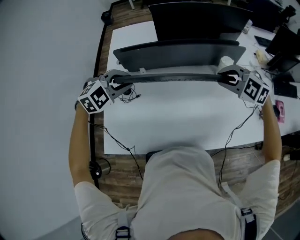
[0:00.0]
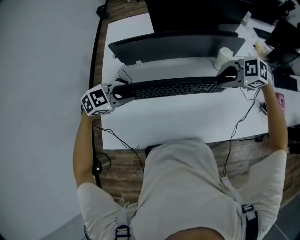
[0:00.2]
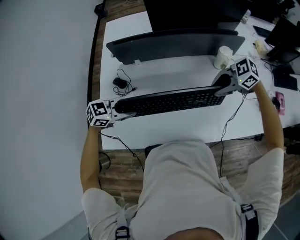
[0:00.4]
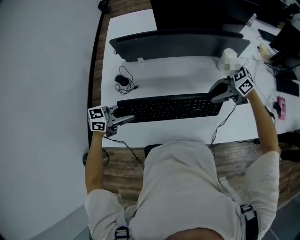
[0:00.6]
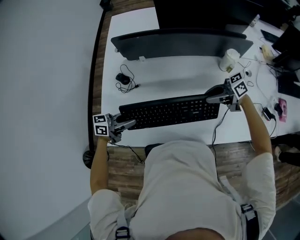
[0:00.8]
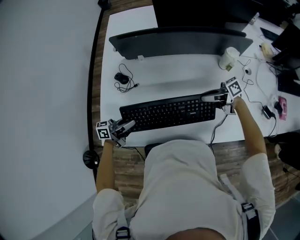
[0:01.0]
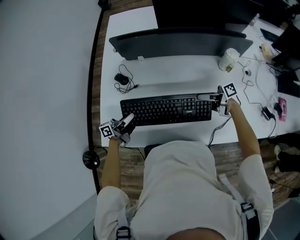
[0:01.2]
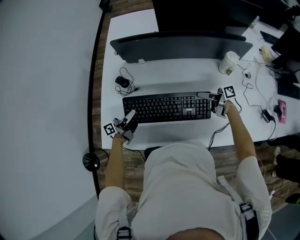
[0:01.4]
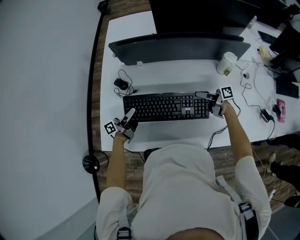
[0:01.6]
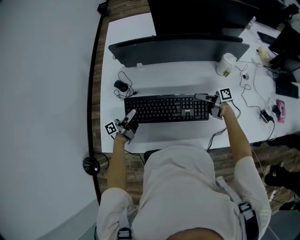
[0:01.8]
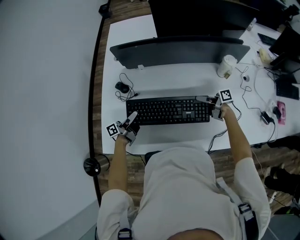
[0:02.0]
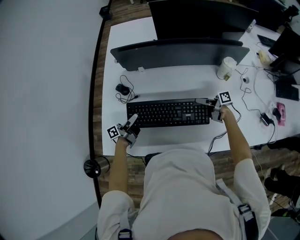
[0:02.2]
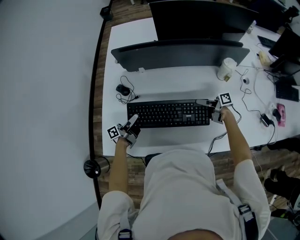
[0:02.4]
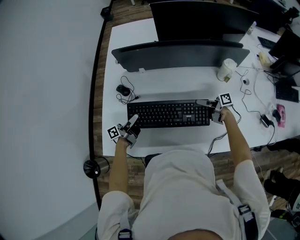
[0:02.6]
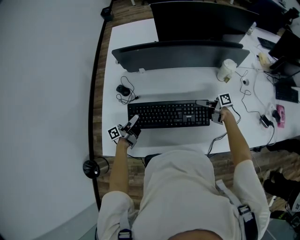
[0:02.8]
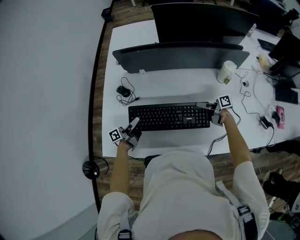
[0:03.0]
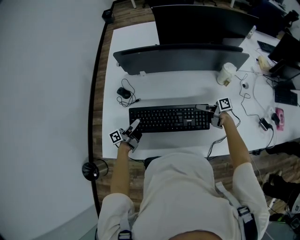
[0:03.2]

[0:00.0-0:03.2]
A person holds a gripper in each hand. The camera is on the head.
0.0 to 1.6 s: The two grippers go about 25 cm downward. The right gripper rotates around the line of its fingers by roughly 100 degrees, clockwise from behind. The left gripper rolls counterclockwise, seen from behind, by some 110 degrees.
1.6 to 3.2 s: The grippers make only small movements.

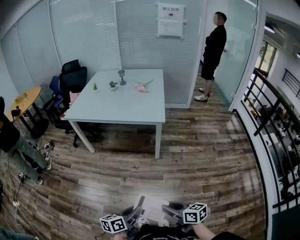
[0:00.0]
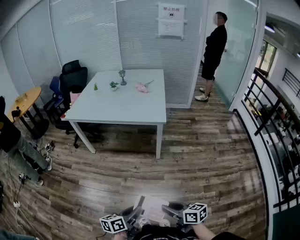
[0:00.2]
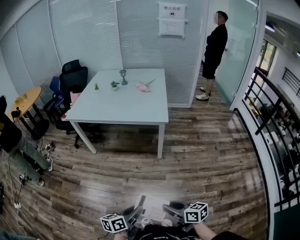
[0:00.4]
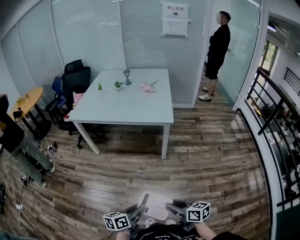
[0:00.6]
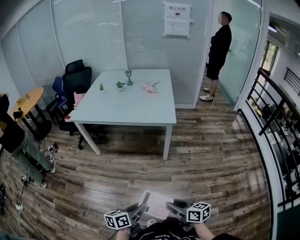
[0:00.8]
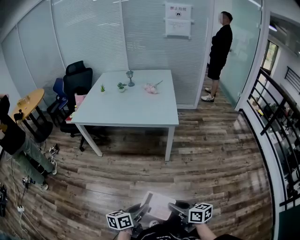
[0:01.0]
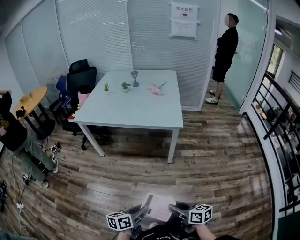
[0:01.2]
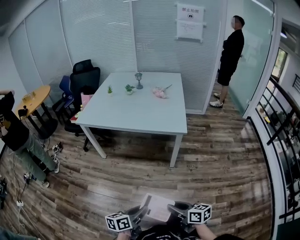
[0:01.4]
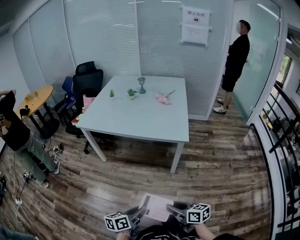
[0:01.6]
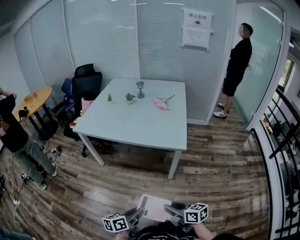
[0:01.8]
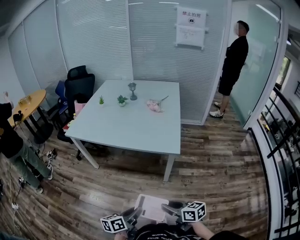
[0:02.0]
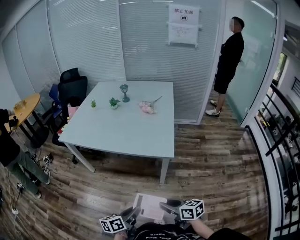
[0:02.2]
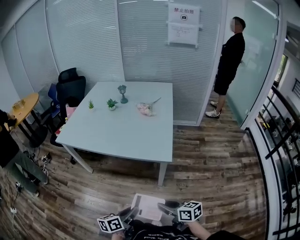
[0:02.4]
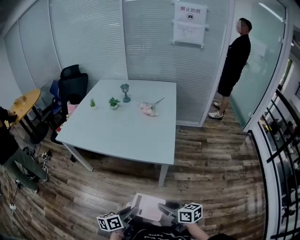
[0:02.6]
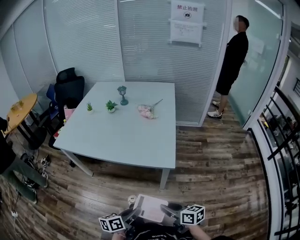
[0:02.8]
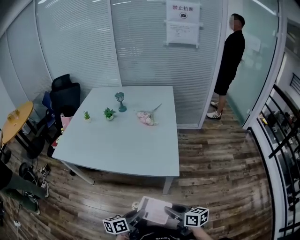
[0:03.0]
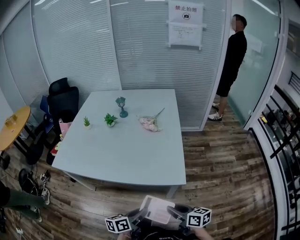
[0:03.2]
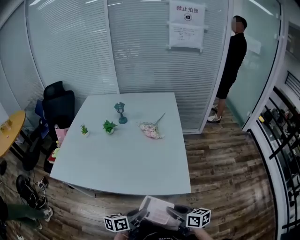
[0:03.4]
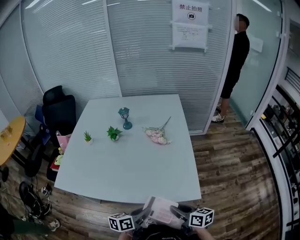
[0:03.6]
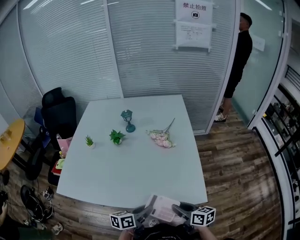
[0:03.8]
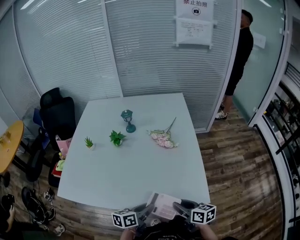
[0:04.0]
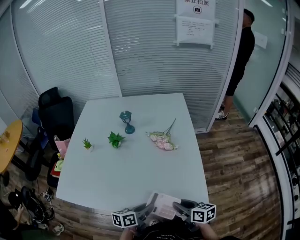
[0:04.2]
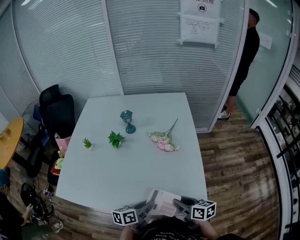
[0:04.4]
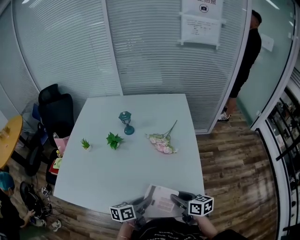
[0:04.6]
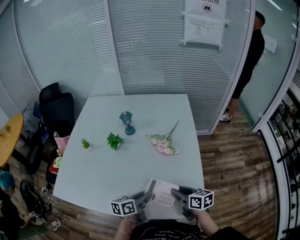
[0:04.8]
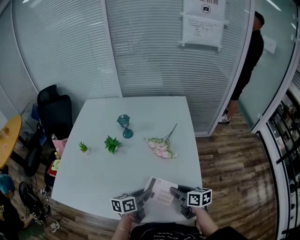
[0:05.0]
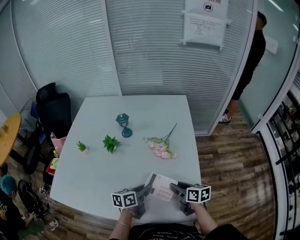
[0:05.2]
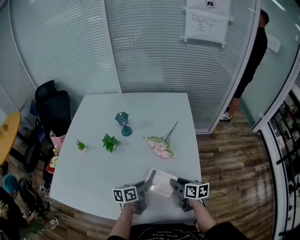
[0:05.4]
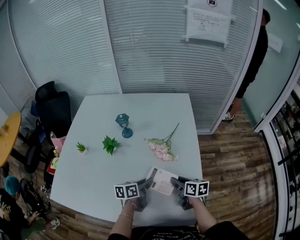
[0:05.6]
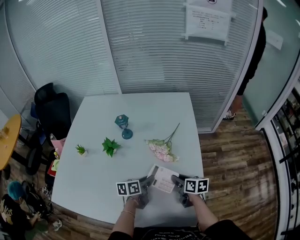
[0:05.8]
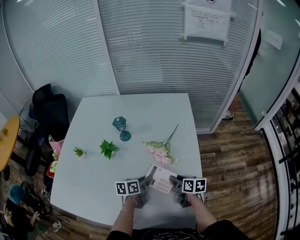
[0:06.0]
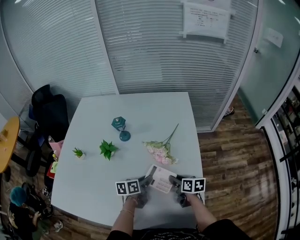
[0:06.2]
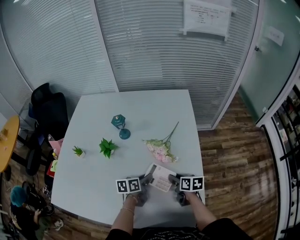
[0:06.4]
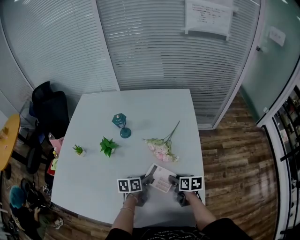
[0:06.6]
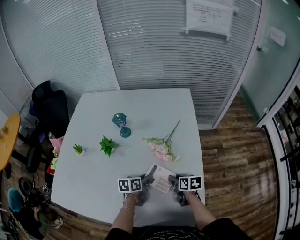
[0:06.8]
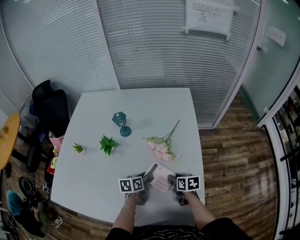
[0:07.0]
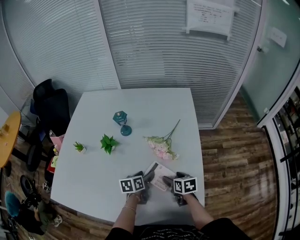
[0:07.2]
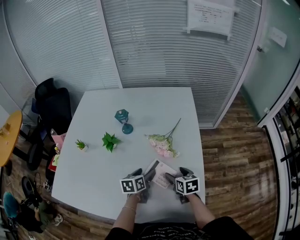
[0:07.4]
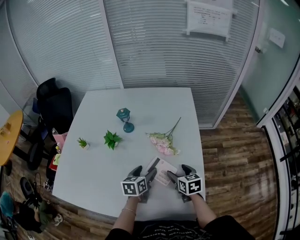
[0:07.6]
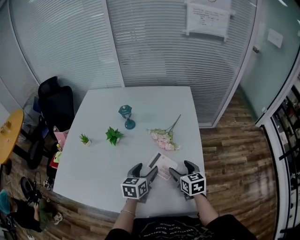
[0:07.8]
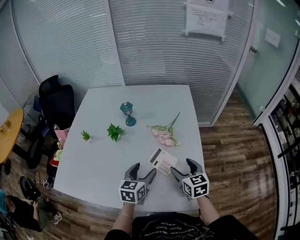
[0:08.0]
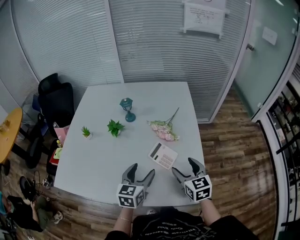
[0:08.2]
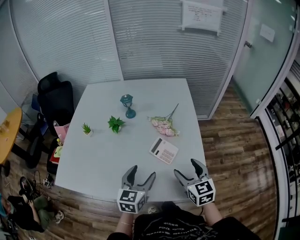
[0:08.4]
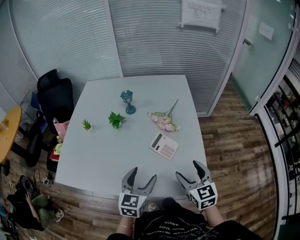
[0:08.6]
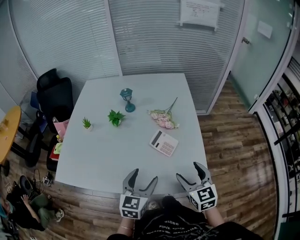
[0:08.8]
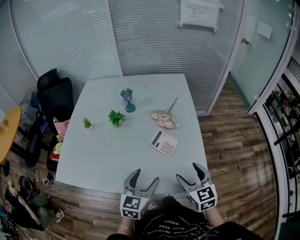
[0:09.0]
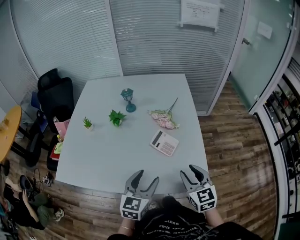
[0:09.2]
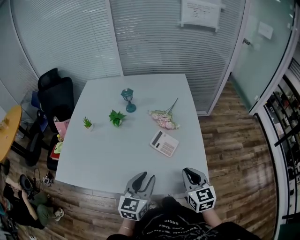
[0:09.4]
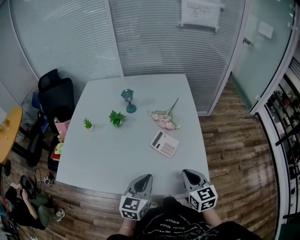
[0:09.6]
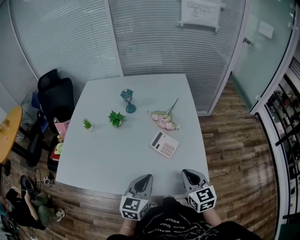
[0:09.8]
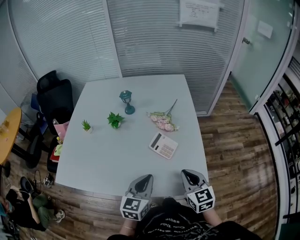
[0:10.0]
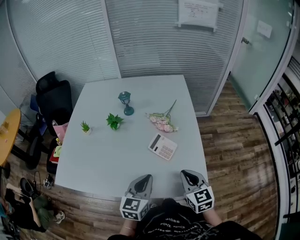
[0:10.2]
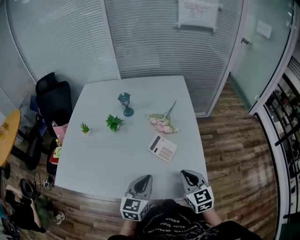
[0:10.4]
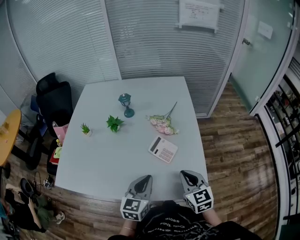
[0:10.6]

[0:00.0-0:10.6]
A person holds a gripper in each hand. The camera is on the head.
0.0 to 1.6 s: The grippers both shift forward by about 20 cm.
1.6 to 3.0 s: Both grippers move forward and to the right, roughly 30 cm.
3.0 to 4.6 s: Both grippers move forward, approximately 35 cm.
4.6 to 6.0 s: The two grippers go some 20 cm forward.
6.0 to 7.6 s: The left gripper swivels approximately 20 degrees, and opens; the right gripper swivels roughly 30 degrees, and opens its fingers.
7.6 to 9.0 s: Both grippers move backward and upward, some 25 cm. The left gripper turns by some 30 degrees. The right gripper rotates approximately 20 degrees.
9.0 to 10.6 s: The right gripper closes; the left gripper closes up.

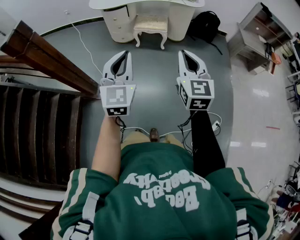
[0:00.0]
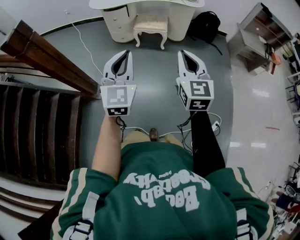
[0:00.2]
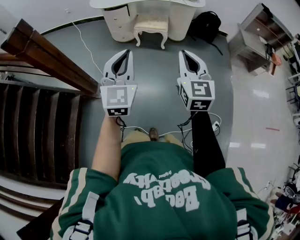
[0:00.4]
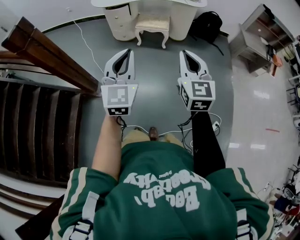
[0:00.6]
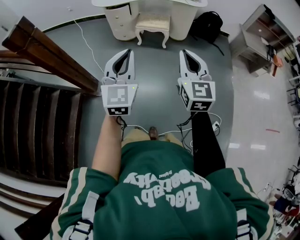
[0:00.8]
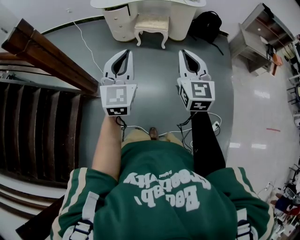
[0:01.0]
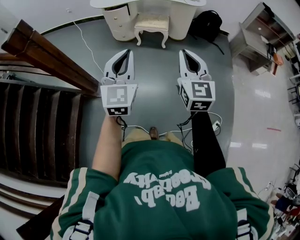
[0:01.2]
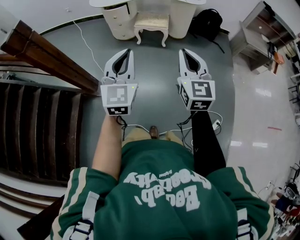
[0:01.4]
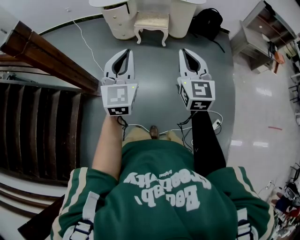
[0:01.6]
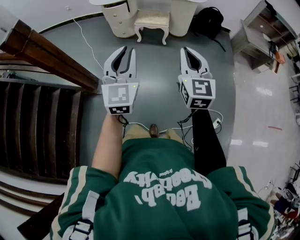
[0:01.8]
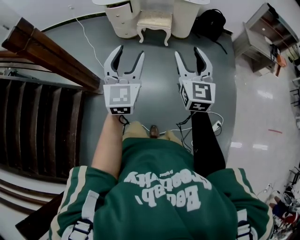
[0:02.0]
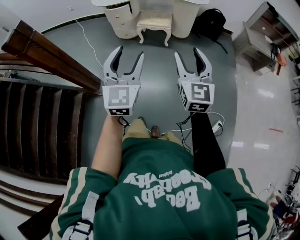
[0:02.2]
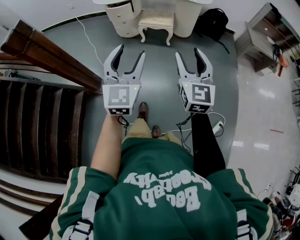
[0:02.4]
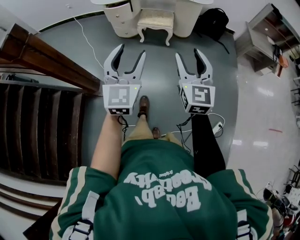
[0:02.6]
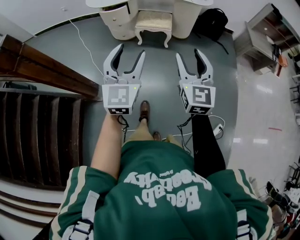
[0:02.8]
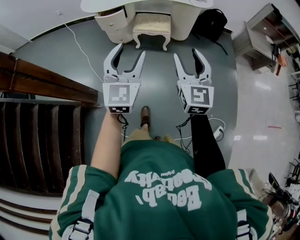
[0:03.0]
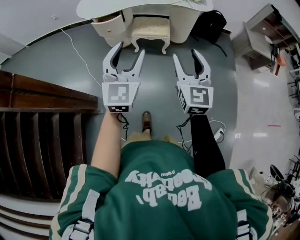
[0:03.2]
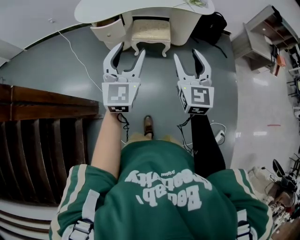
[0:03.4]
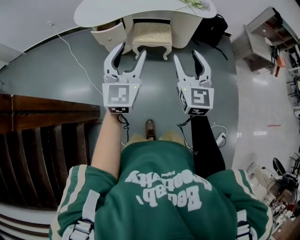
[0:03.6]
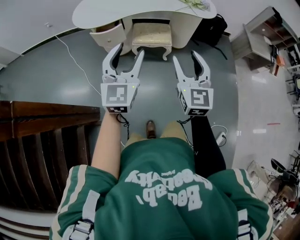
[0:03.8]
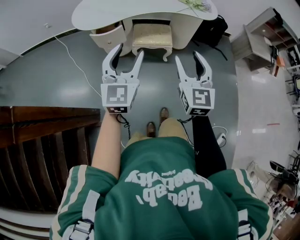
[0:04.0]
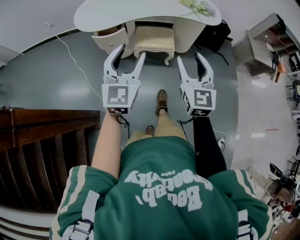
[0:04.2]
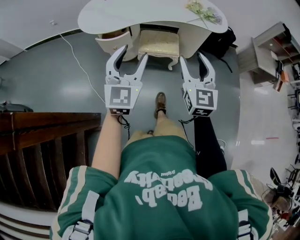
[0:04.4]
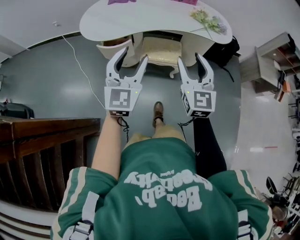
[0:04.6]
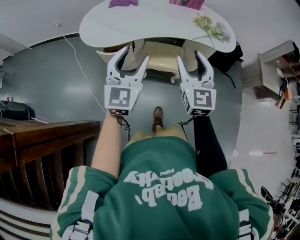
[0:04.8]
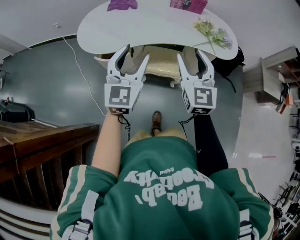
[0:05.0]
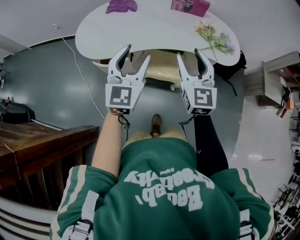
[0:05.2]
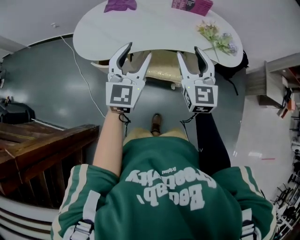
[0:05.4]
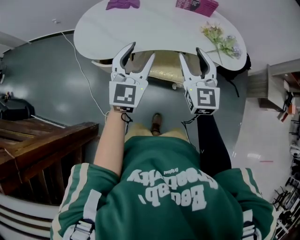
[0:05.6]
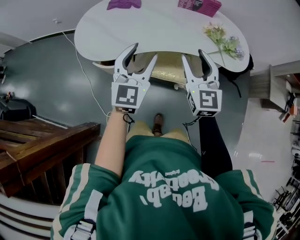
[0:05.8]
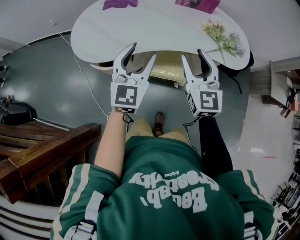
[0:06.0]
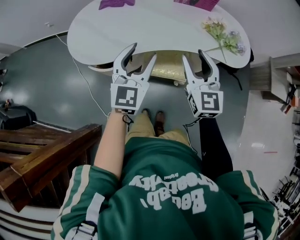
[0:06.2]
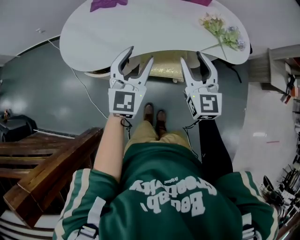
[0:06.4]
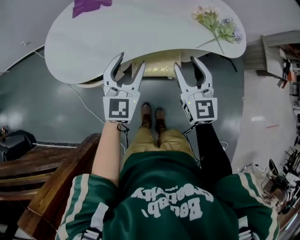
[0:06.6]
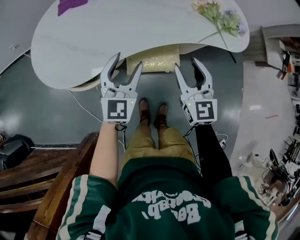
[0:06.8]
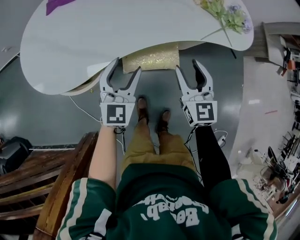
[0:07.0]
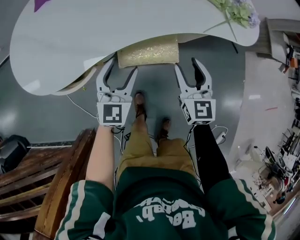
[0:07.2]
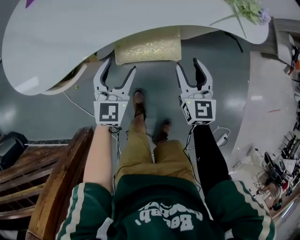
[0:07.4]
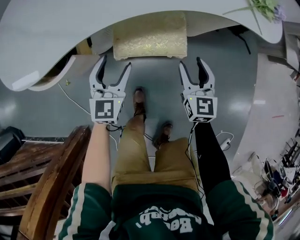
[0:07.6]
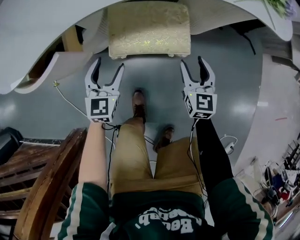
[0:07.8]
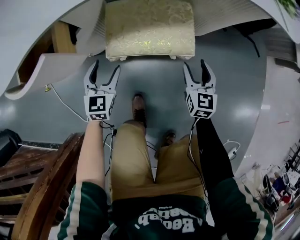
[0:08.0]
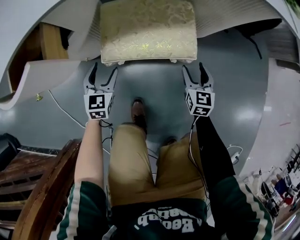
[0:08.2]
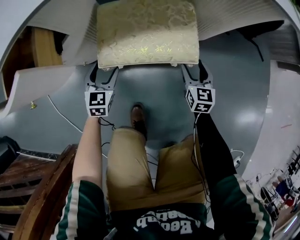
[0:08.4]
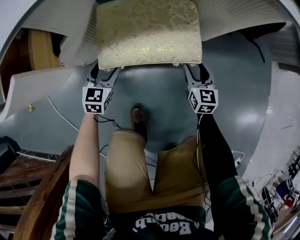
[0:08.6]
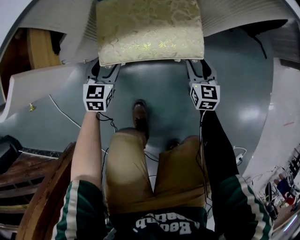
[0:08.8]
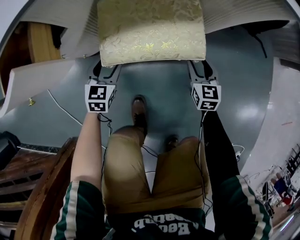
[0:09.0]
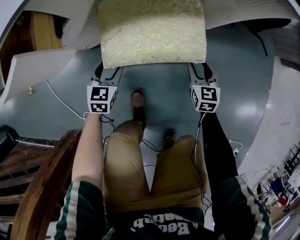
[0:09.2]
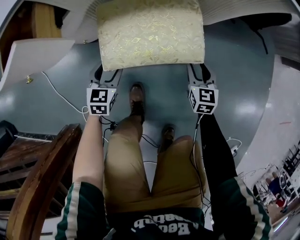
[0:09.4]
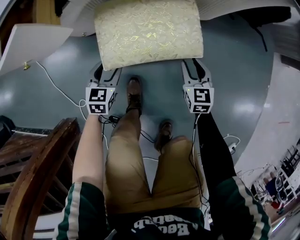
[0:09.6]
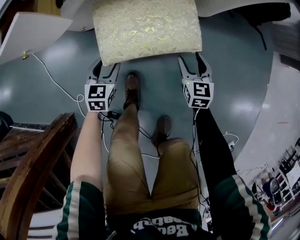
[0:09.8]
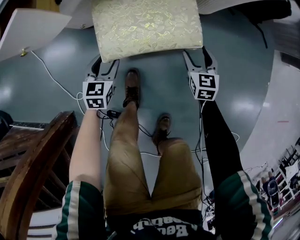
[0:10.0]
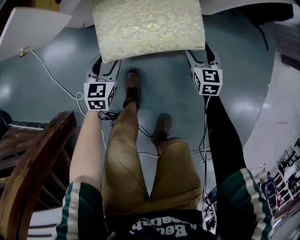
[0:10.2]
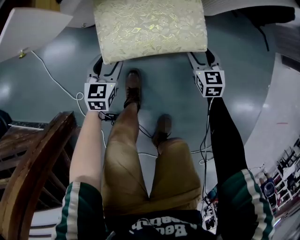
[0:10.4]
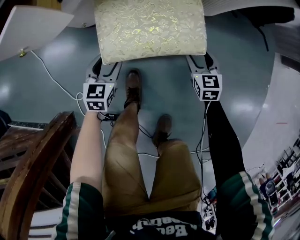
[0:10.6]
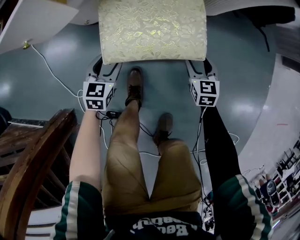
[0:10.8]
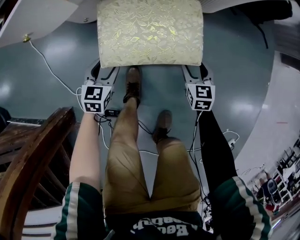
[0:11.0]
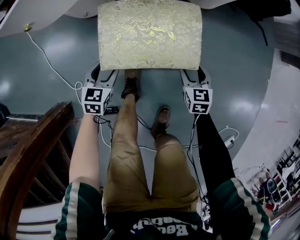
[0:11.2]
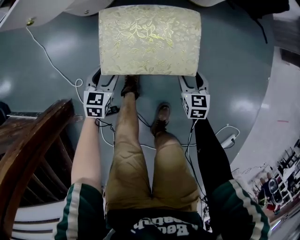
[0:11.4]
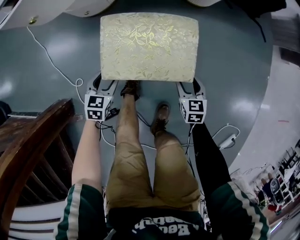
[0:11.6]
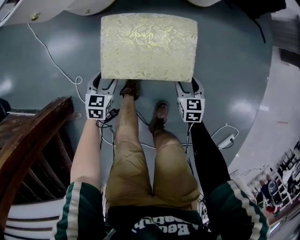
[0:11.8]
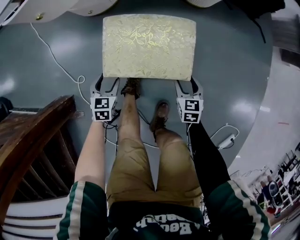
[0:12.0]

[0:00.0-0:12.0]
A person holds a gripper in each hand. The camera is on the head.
0.0 to 1.6 s: The grippers make only small movements.
1.6 to 3.0 s: The two grippers go some 20 cm forward. The left gripper opens its fingers; the right gripper opens up.
3.0 to 4.4 s: The left gripper heads forward and to the left, covering approximately 25 cm. Meanwhile the right gripper moves forward, roughly 25 cm.
4.4 to 6.0 s: The two grippers go approximately 30 cm forward.
6.0 to 7.6 s: Both grippers travel together downward, some 40 cm. The right gripper rotates roughly 30 degrees.
7.6 to 9.0 s: The two grippers go approximately 25 cm downward.
9.0 to 10.4 s: The left gripper heads backward, covering some 15 cm. Meanwhile the right gripper goes approximately 5 cm backward.
10.4 to 12.0 s: Both grippers travel together backward, some 25 cm.
